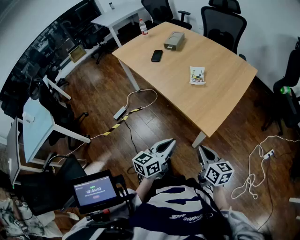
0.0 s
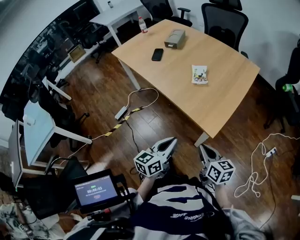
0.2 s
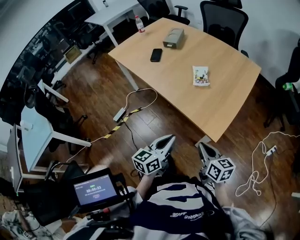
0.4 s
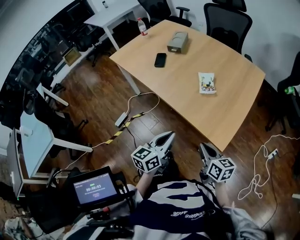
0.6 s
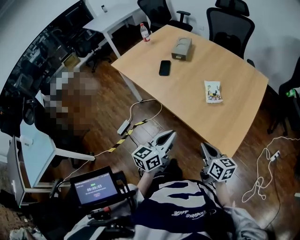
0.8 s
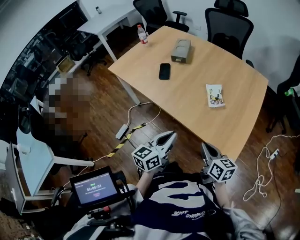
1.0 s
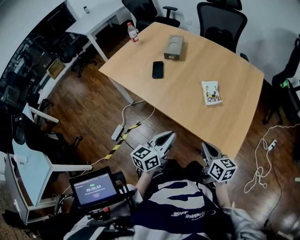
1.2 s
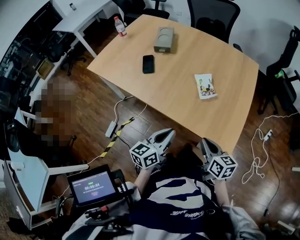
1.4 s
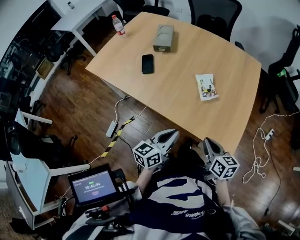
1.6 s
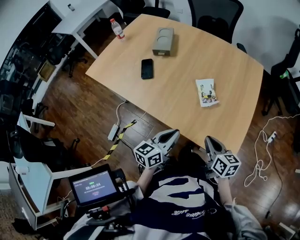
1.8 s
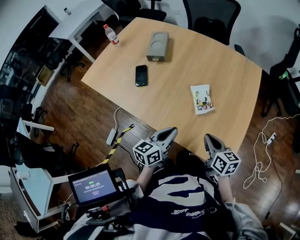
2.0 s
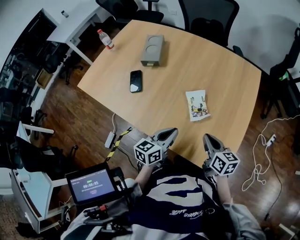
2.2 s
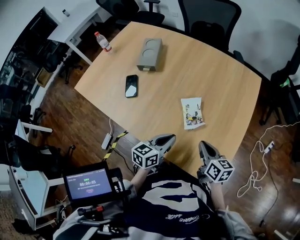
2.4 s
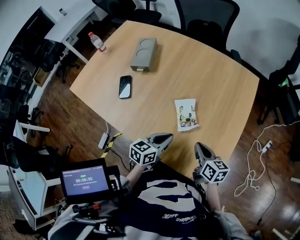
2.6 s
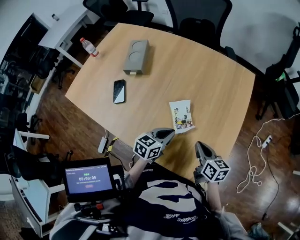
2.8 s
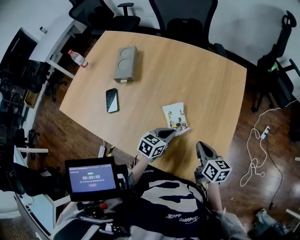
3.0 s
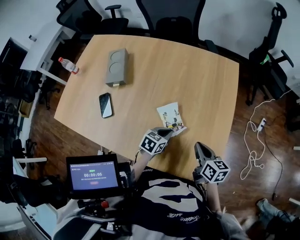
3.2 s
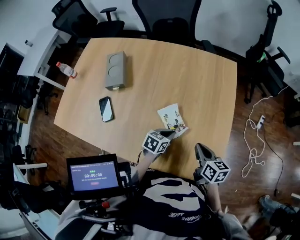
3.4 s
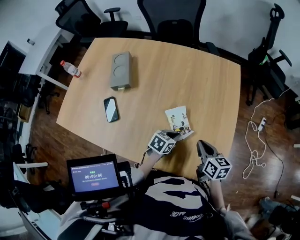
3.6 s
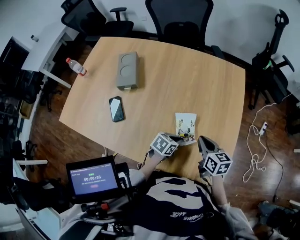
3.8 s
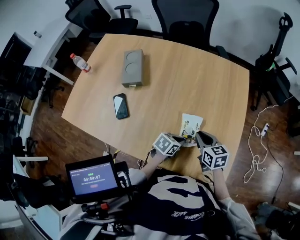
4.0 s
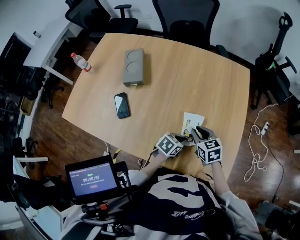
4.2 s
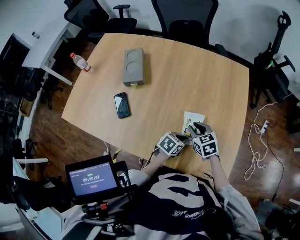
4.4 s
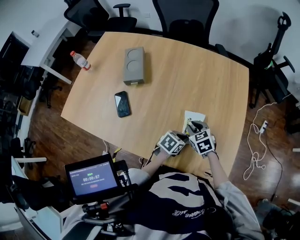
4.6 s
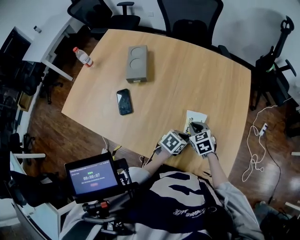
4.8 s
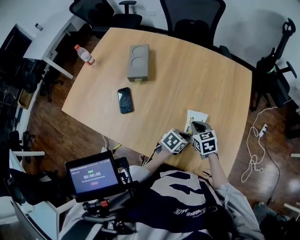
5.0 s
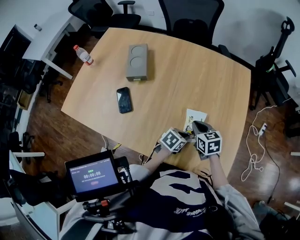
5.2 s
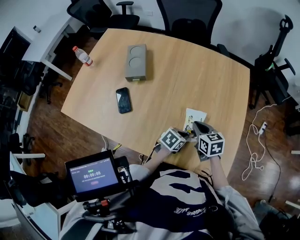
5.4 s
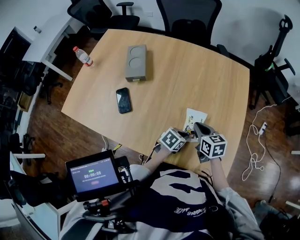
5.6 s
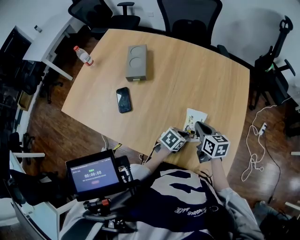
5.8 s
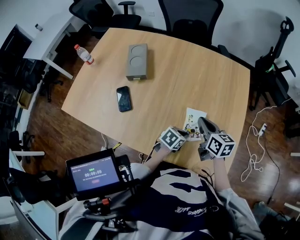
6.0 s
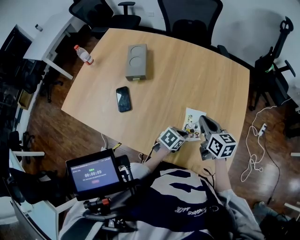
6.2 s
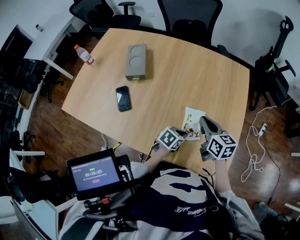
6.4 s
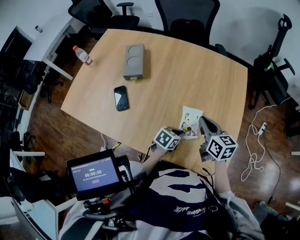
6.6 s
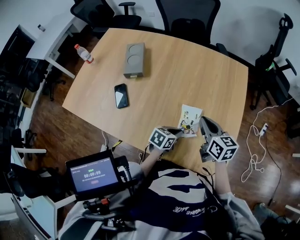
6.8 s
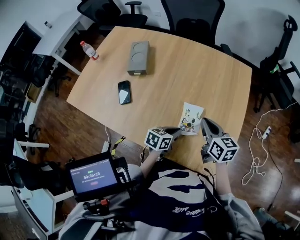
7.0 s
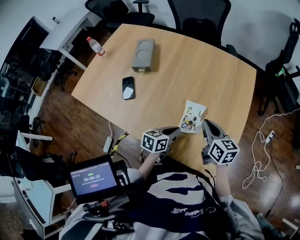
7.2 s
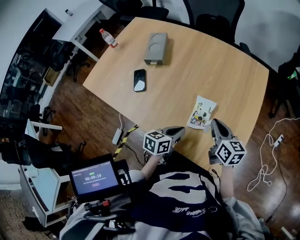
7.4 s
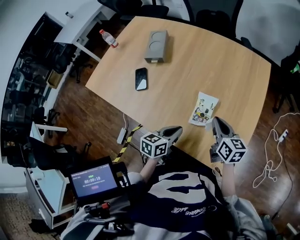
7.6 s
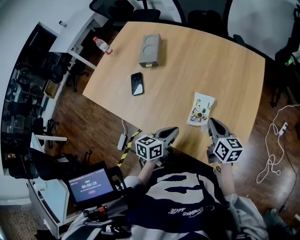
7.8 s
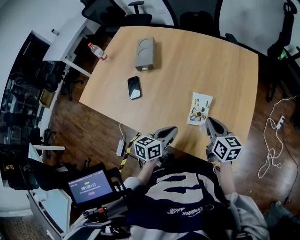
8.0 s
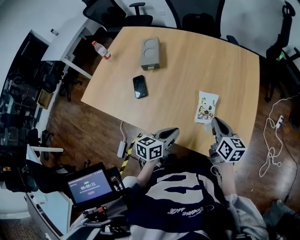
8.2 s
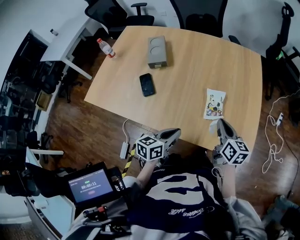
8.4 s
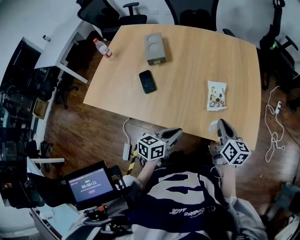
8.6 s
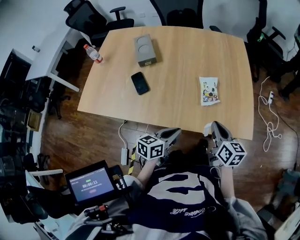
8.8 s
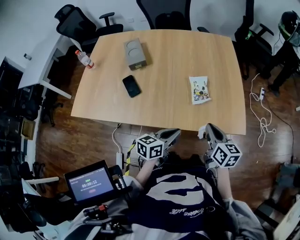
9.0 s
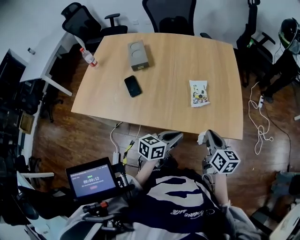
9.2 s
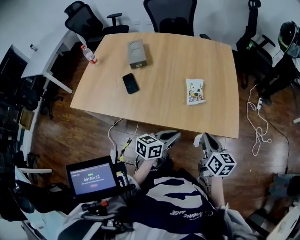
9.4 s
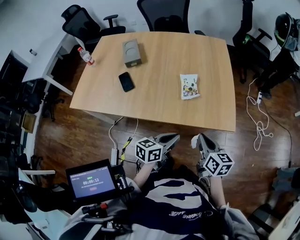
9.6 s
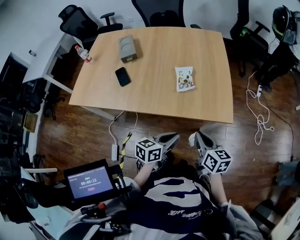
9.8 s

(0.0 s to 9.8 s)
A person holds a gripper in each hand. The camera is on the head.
0.0 s - 1.4 s: The two grippers go some 30 cm forward and to the left.
1.4 s - 2.8 s: The grippers both shift forward and to the right by about 25 cm. The left gripper rotates roughly 30 degrees.
2.8 s - 4.2 s: The right gripper goes about 10 cm to the left, and changes its angle by some 30 degrees; the left gripper shifts some 10 cm downward, and swivels about 30 degrees.
4.2 s - 5.6 s: The grippers make only small movements.
5.6 s - 7.0 s: The left gripper rotates roughly 20 degrees. The right gripper is displaced upward and to the right by approximately 10 cm.
7.0 s - 8.4 s: The right gripper travels backward by approximately 10 cm; the left gripper is displaced to the left, backward and upward by approximately 20 cm.
8.4 s - 9.8 s: The right gripper is displaced backward and to the right by approximately 25 cm. The left gripper shifts roughly 20 cm to the right and backward.

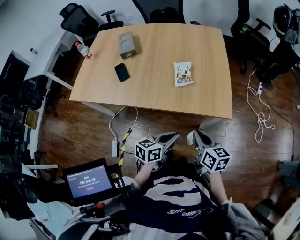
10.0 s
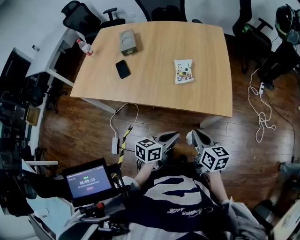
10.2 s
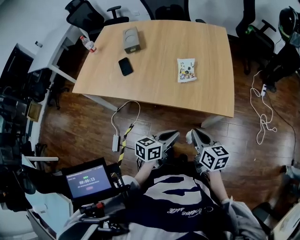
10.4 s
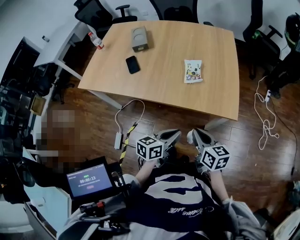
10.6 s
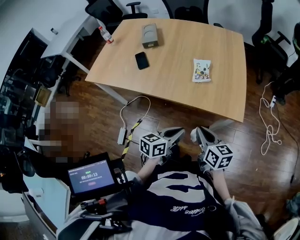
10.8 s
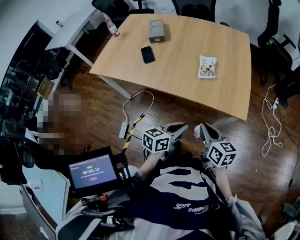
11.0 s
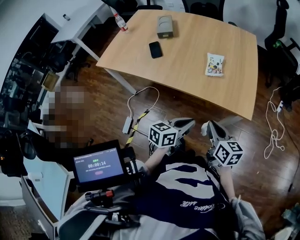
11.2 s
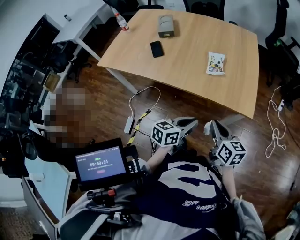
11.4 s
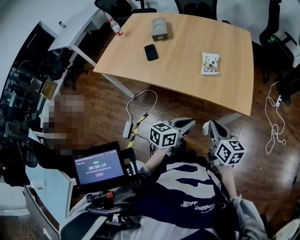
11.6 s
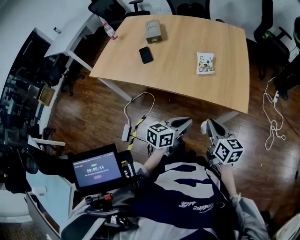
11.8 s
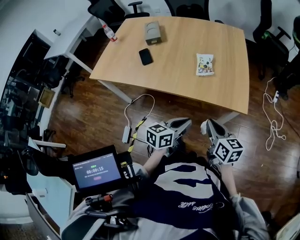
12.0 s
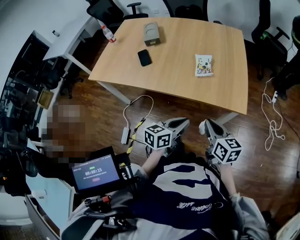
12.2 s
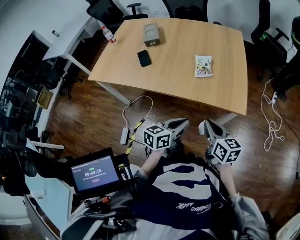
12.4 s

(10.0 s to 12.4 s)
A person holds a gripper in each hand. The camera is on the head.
10.0 s - 12.4 s: The grippers stay close to where they were, moving slightly.

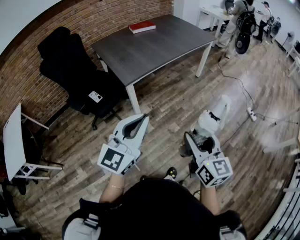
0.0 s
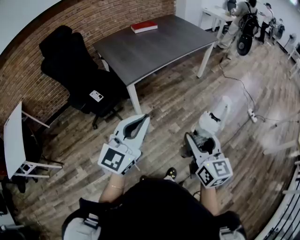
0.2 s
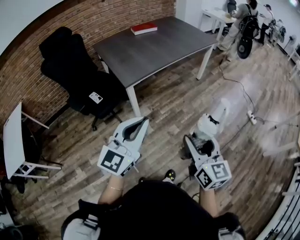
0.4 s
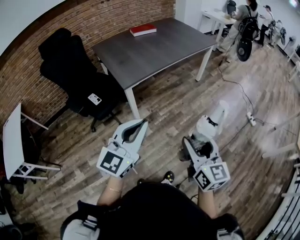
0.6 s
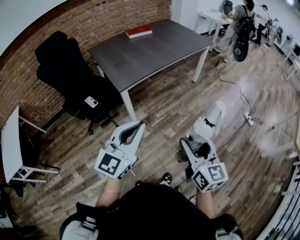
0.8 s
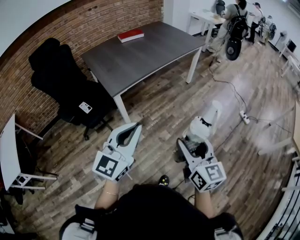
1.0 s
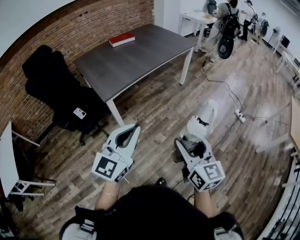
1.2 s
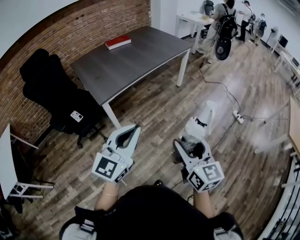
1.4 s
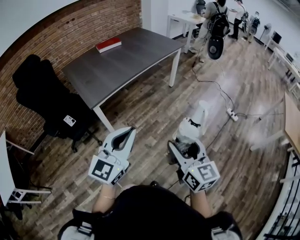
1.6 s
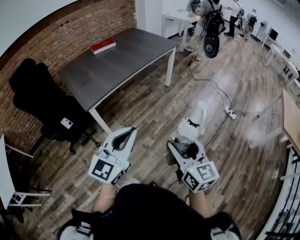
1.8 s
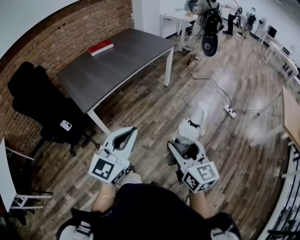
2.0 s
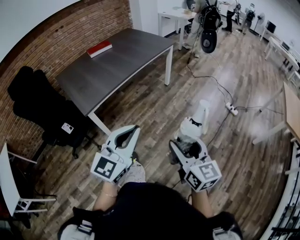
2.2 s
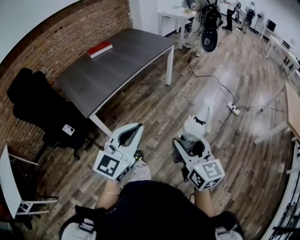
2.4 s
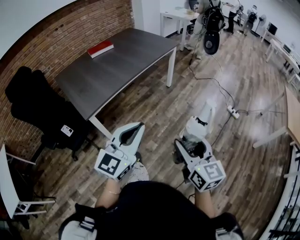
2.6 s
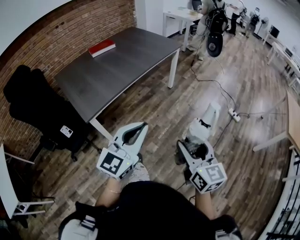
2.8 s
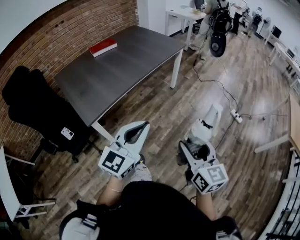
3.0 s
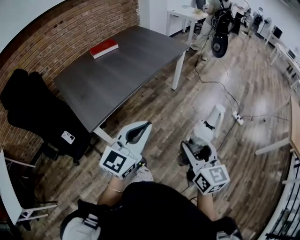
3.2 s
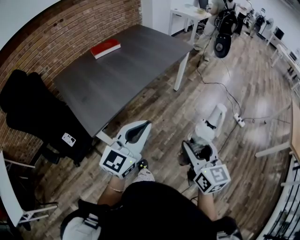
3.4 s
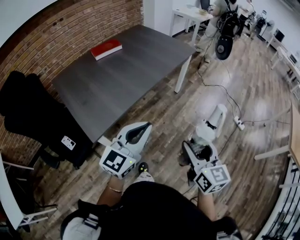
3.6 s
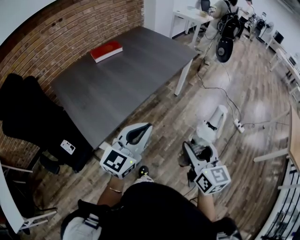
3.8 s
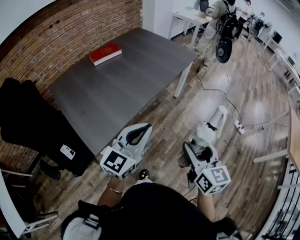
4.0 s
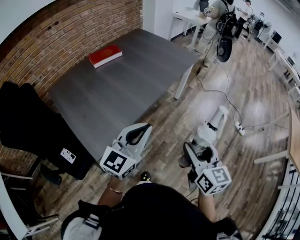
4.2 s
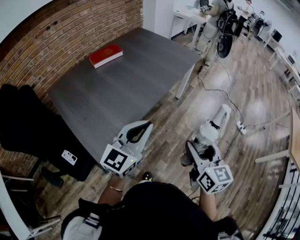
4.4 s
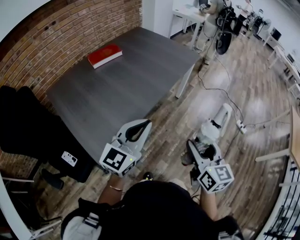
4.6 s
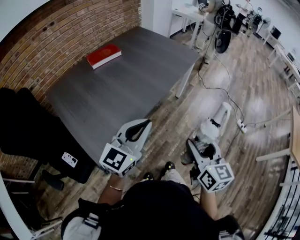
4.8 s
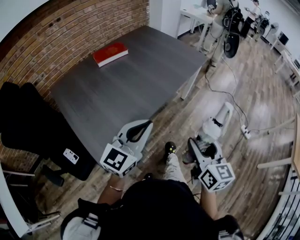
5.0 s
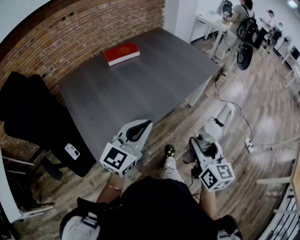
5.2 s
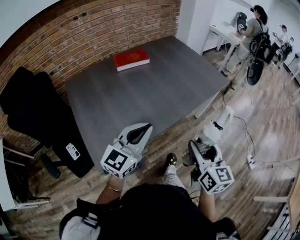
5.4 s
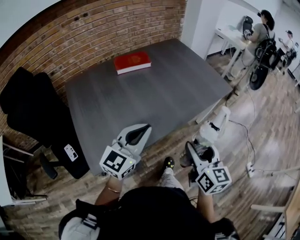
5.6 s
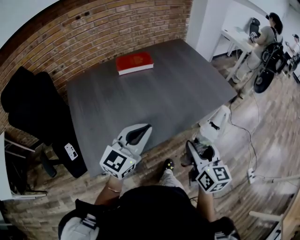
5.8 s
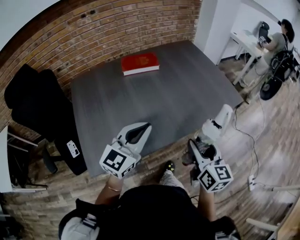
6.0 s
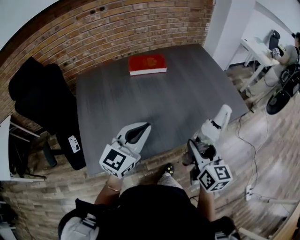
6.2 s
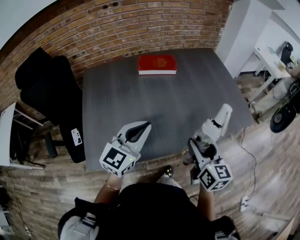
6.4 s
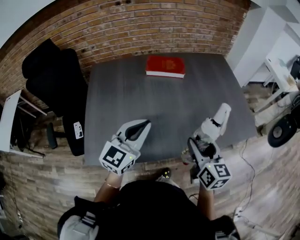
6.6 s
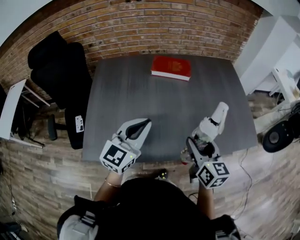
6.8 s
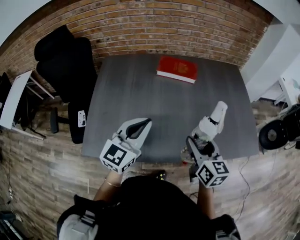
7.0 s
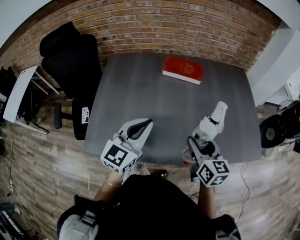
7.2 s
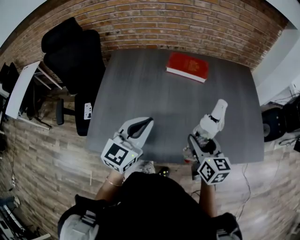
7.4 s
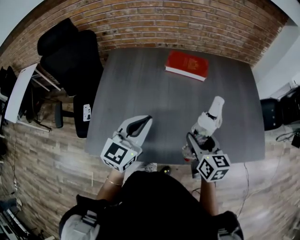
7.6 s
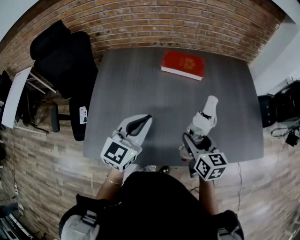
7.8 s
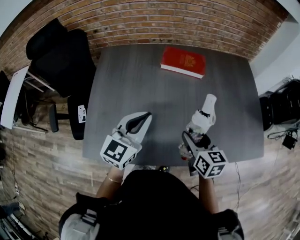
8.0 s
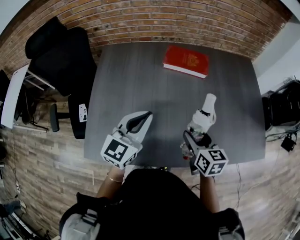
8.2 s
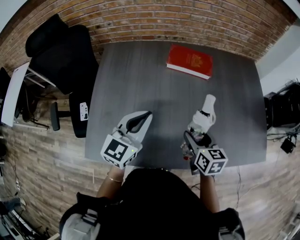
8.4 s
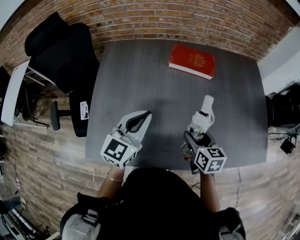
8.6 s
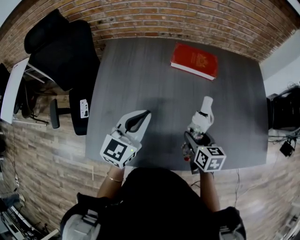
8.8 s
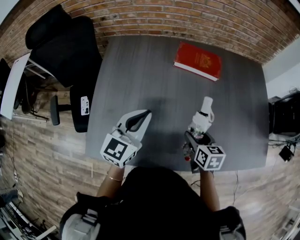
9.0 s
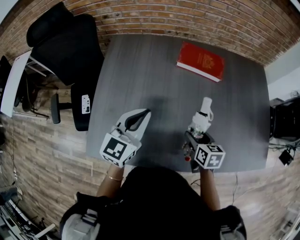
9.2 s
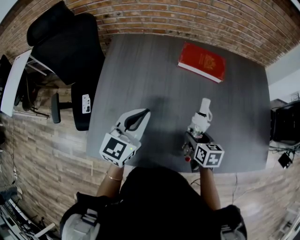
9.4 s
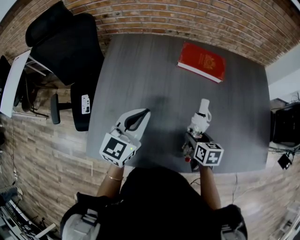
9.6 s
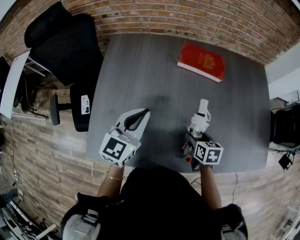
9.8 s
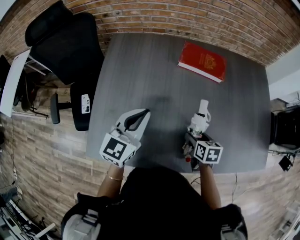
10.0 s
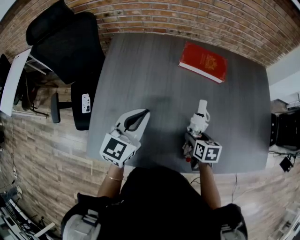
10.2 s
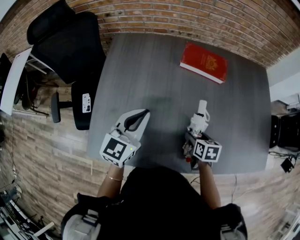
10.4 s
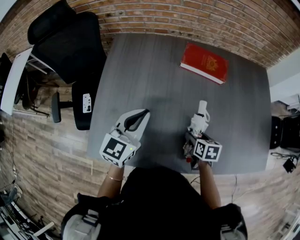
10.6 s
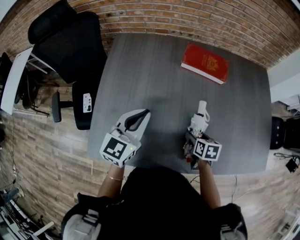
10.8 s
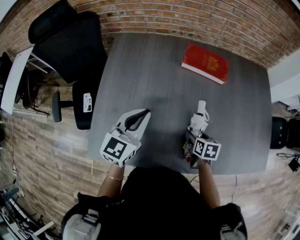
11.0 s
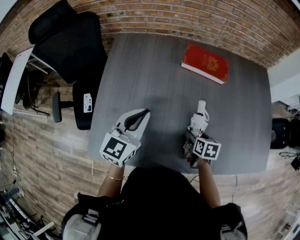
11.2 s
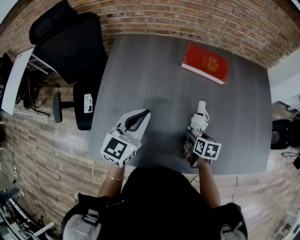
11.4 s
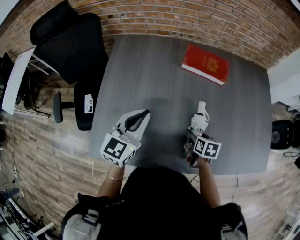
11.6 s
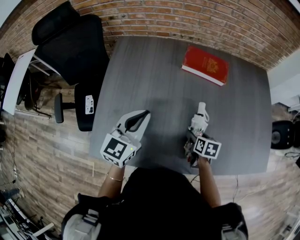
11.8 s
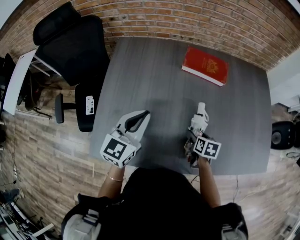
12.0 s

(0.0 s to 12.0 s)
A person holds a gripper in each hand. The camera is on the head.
0.0 s - 1.6 s: Both grippers move to the right and forward, roughly 15 cm.
1.6 s - 3.0 s: Both grippers move forward, about 15 cm.
3.0 s - 4.4 s: Both grippers travel together forward and to the left, about 30 cm.
4.4 s - 6.0 s: Both grippers travel together forward, approximately 25 cm. The left gripper changes its angle by approximately 30 degrees; the right gripper swivels roughly 20 degrees.
6.0 s - 7.6 s: The left gripper moves roughly 15 cm, and turns by roughly 30 degrees, while the right gripper moves some 25 cm, and turns by approximately 30 degrees.
7.6 s - 9.0 s: The left gripper shifts some 10 cm forward and to the left; the right gripper is displaced downward and forward by roughly 15 cm, and changes its angle by some 20 degrees.
9.0 s - 10.4 s: The right gripper heads downward, covering about 5 cm.
10.4 s - 12.0 s: The grippers stay close to where they were, moving slightly.
